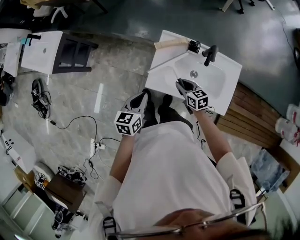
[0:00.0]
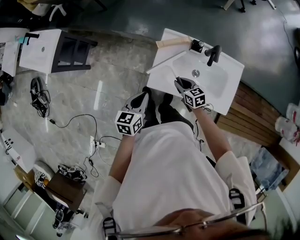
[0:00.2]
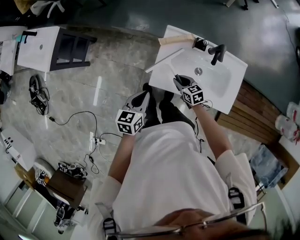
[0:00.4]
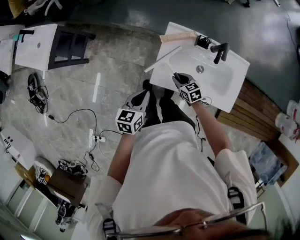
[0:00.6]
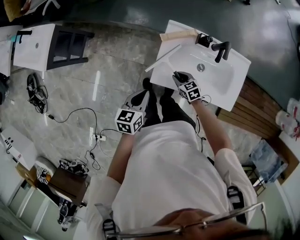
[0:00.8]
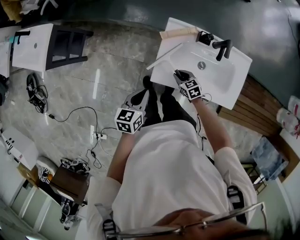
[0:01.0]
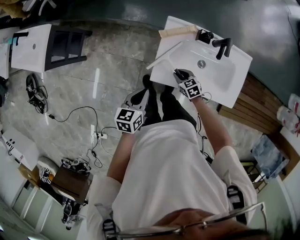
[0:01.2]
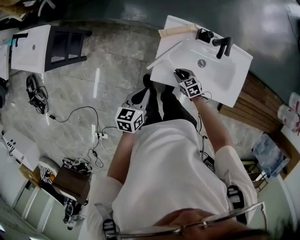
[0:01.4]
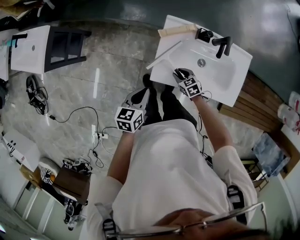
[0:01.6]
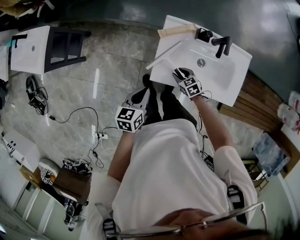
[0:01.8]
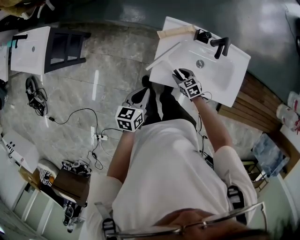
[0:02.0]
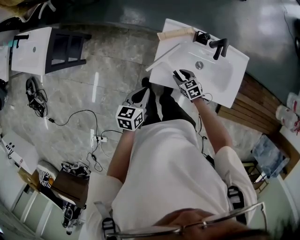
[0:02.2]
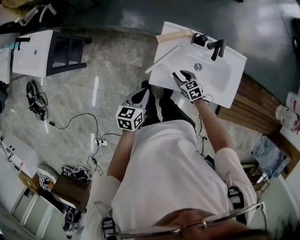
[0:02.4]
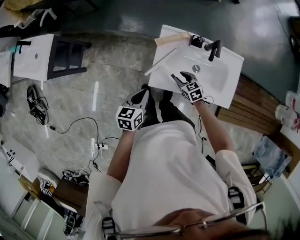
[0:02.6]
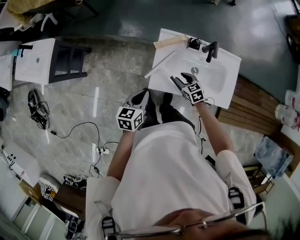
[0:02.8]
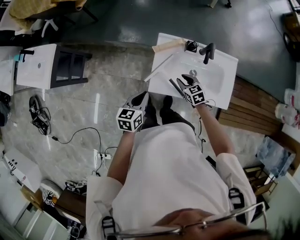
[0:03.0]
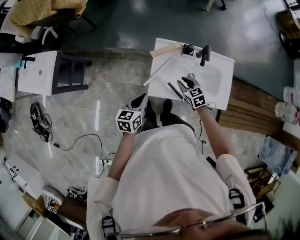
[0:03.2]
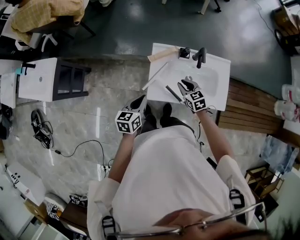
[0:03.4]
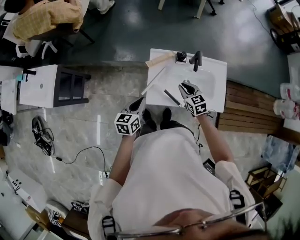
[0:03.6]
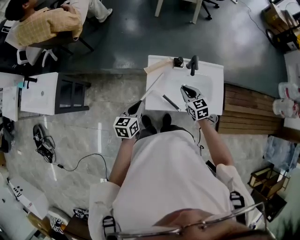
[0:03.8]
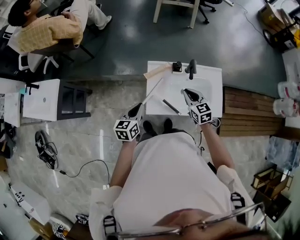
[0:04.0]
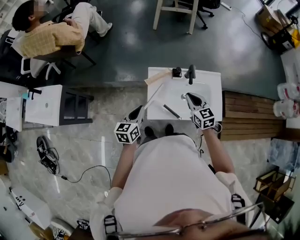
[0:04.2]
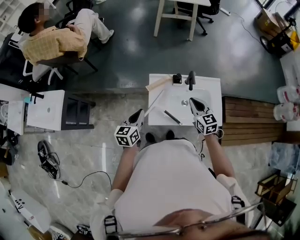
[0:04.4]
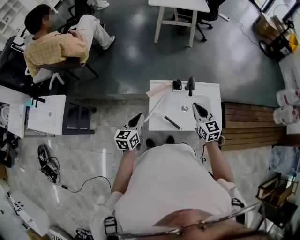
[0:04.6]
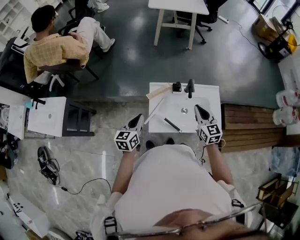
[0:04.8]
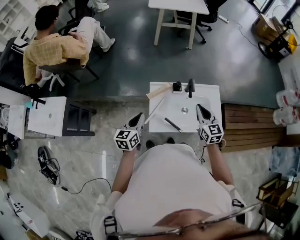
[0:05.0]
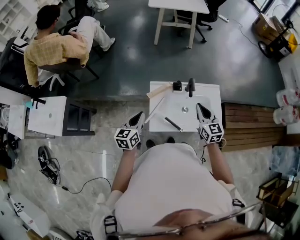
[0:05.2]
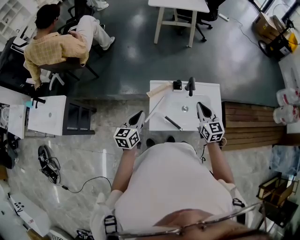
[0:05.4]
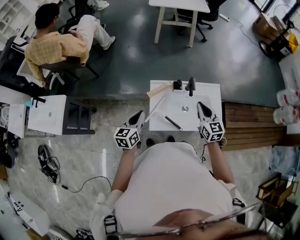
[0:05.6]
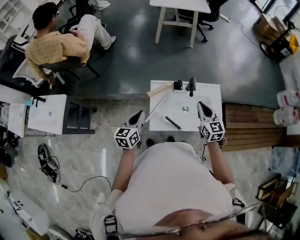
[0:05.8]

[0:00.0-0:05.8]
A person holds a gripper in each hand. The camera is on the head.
0:00.0 to 0:01.4: The right gripper is displaced downward by about 15 cm. The left gripper is displaced downward by approximately 5 cm.
0:01.4 to 0:02.8: The right gripper moves upward, about 10 cm.
0:02.8 to 0:04.4: The left gripper moves upward and forward, approximately 10 cm. The right gripper heads upward, covering approximately 25 cm, turns by approximately 30 degrees, and closes.
0:04.4 to 0:05.8: The right gripper moves some 5 cm.

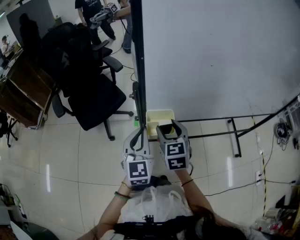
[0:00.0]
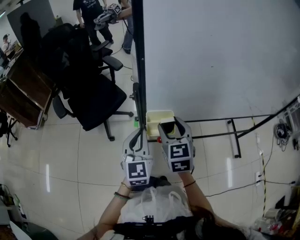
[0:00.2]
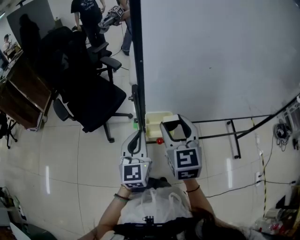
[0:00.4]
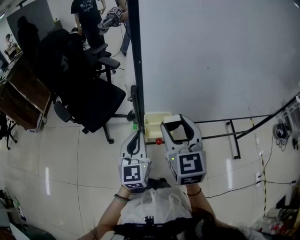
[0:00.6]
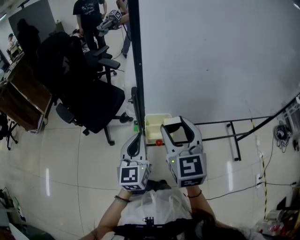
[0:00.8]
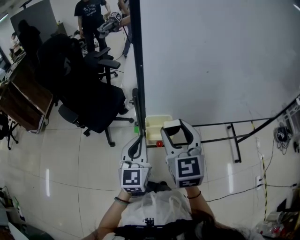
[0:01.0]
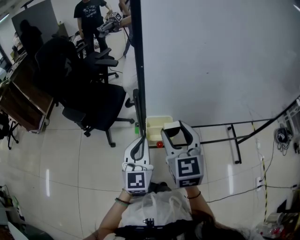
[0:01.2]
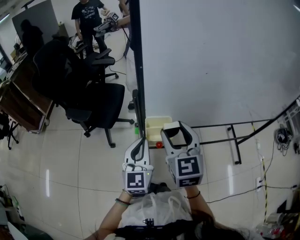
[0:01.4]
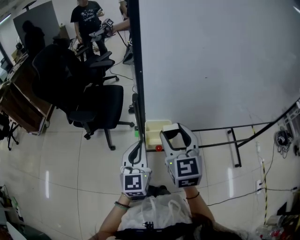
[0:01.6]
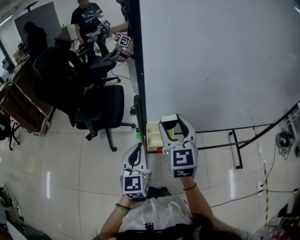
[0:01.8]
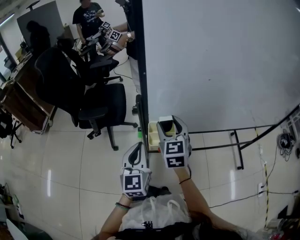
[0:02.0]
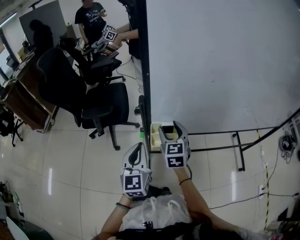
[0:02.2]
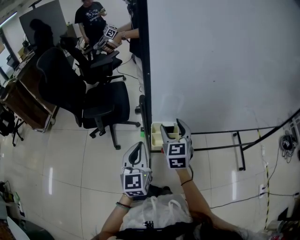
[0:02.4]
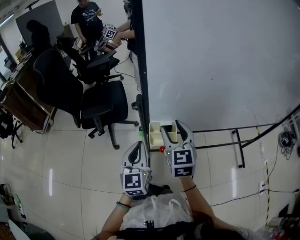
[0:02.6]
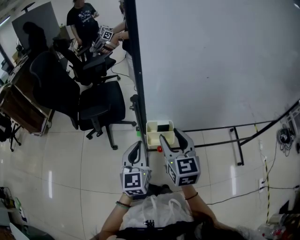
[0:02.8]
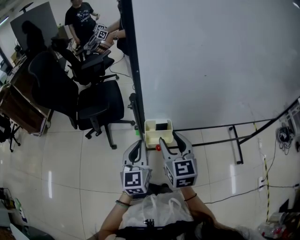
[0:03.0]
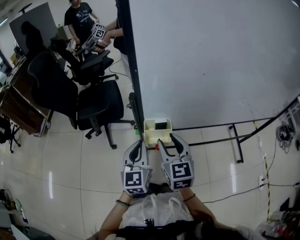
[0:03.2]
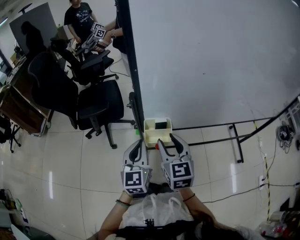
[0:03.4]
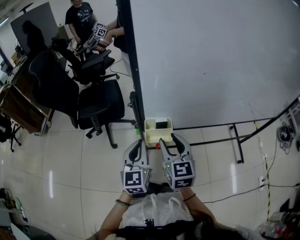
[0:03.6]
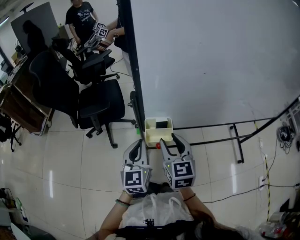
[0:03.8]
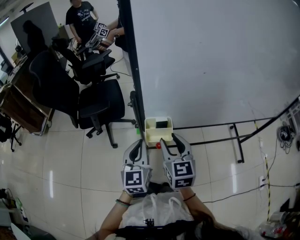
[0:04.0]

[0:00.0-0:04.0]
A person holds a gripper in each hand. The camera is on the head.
0:00.0 to 0:01.4: The right gripper heads upward, covering about 10 cm.
0:02.6 to 0:04.0: The right gripper travels backward by roughly 5 cm.

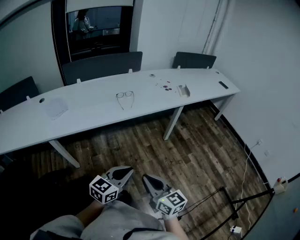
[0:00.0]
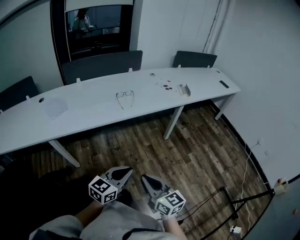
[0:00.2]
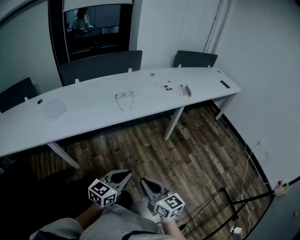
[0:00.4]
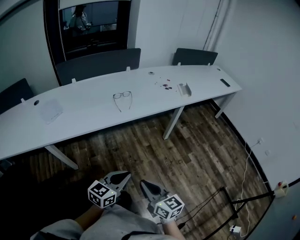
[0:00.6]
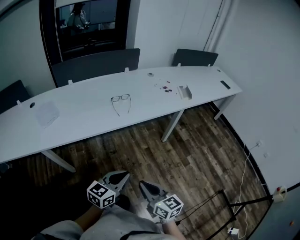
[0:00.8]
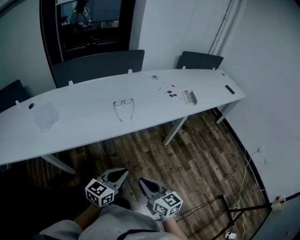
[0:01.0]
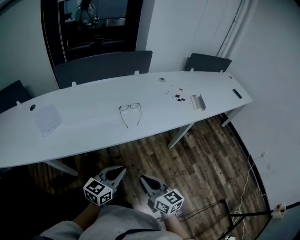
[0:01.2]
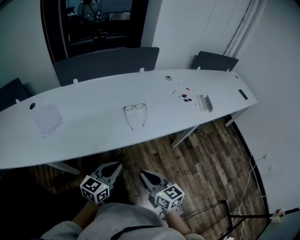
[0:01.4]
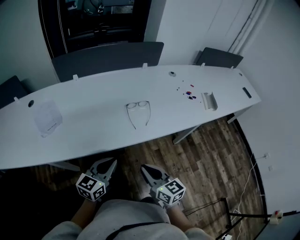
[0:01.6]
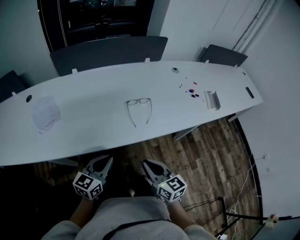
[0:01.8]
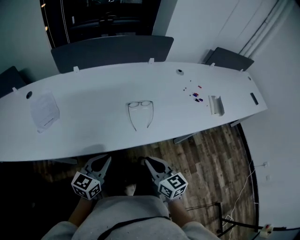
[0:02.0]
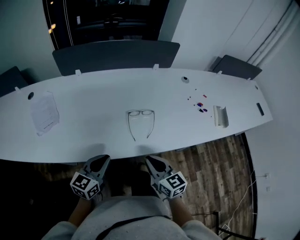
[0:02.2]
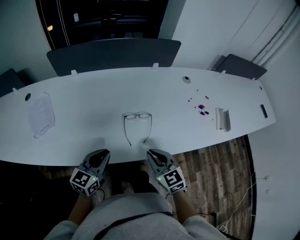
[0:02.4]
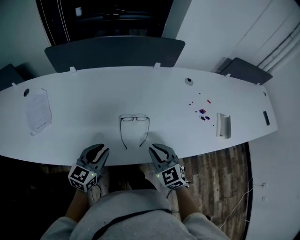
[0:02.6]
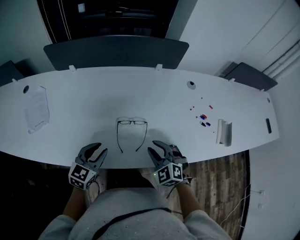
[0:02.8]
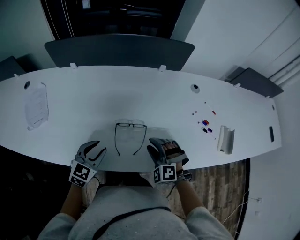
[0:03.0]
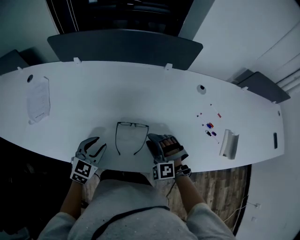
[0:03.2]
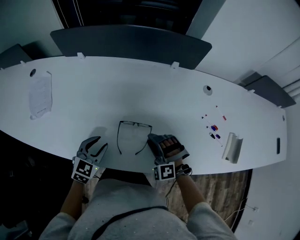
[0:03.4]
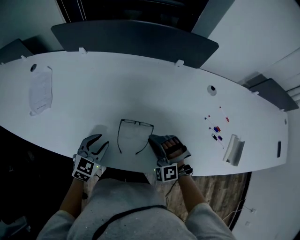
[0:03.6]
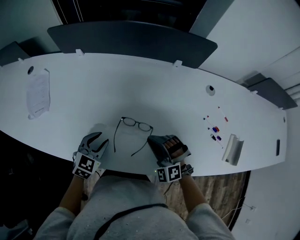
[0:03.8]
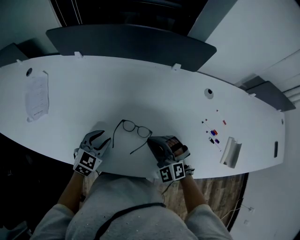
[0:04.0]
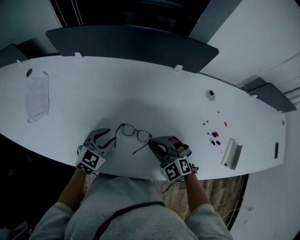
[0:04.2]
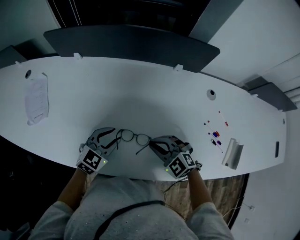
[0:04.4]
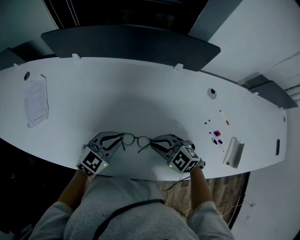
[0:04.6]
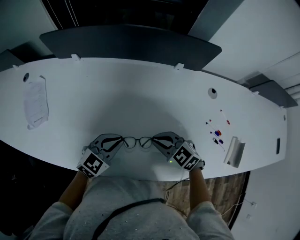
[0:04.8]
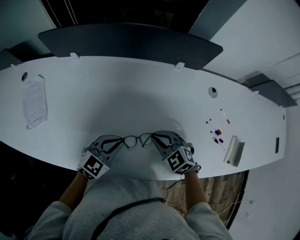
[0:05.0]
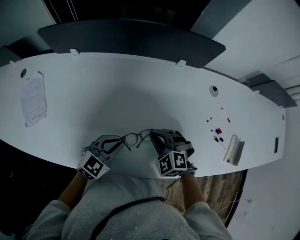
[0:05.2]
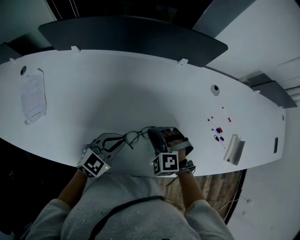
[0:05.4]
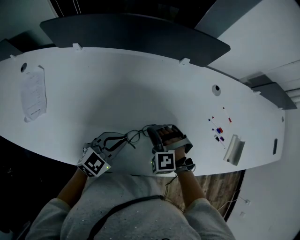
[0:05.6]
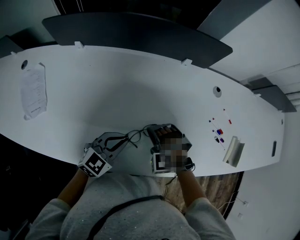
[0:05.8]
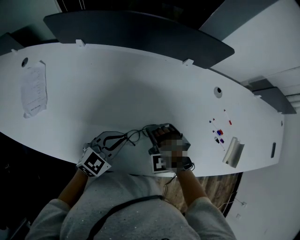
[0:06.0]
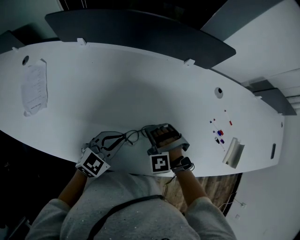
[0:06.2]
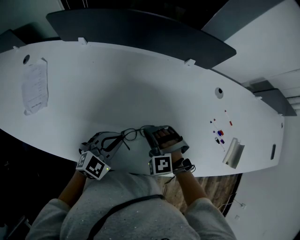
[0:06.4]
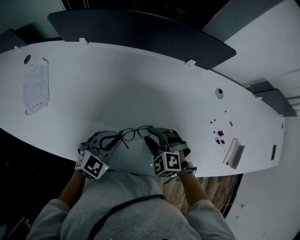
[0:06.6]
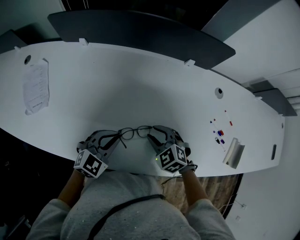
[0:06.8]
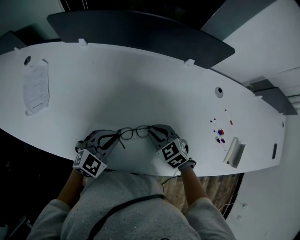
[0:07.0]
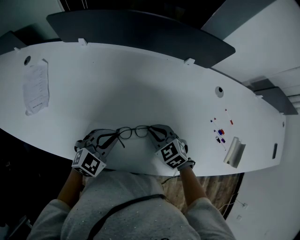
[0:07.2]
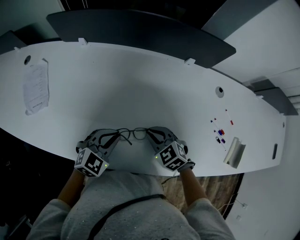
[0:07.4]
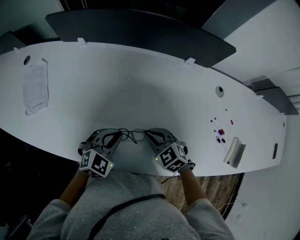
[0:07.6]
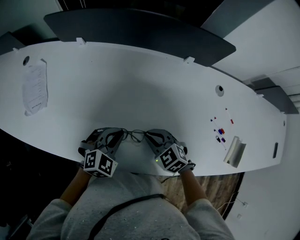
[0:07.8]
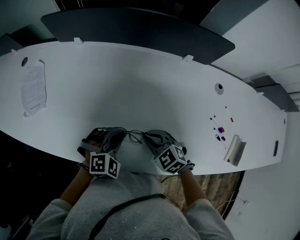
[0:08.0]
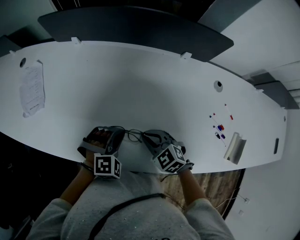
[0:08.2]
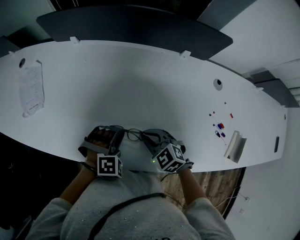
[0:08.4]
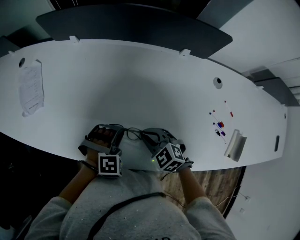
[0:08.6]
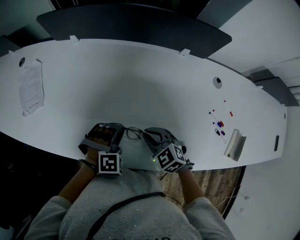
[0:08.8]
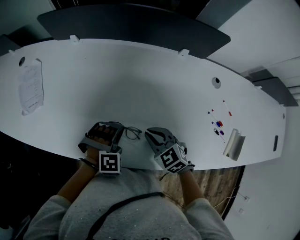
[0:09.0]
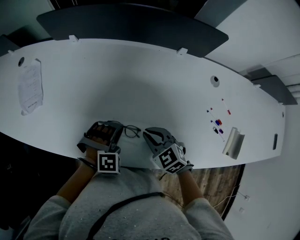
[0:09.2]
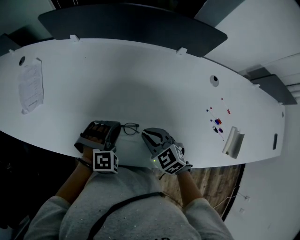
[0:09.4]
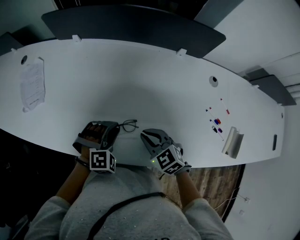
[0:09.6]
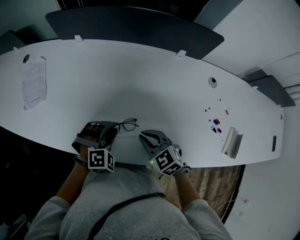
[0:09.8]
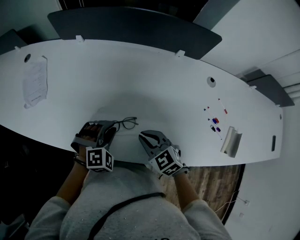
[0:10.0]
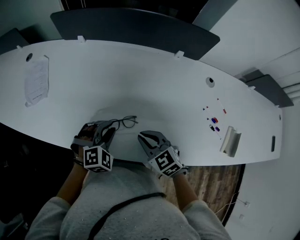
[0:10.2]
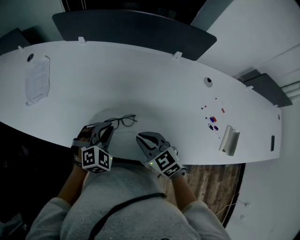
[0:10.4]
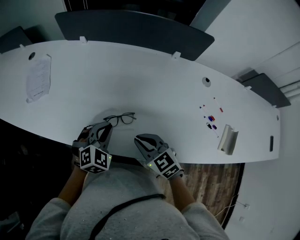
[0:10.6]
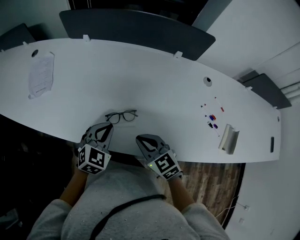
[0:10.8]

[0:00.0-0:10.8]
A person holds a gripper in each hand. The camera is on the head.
0:00.0 to 0:01.6: The right gripper heads forward, covering some 35 cm; the left gripper shifts roughly 40 cm forward and to the left.
0:01.6 to 0:03.0: The left gripper travels forward by some 25 cm, rotates about 30 degrees, and opens up. The right gripper goes approximately 35 cm forward and to the right, rotates around the line of its fingers by about 90 degrees, counterclockwise from behind, and opens up.
0:03.0 to 0:04.6: The left gripper goes approximately 10 cm forward and to the right, and closes. Meanwhile the right gripper goes some 5 cm forward, rotates some 50 degrees, and closes.
0:04.6 to 0:06.2: The right gripper changes place by roughly 10 cm, and turns by some 50 degrees.
0:06.2 to 0:07.8: The right gripper twists some 50 degrees clockwise, seen from behind, and opens, then closes once more, while the left gripper turns by approximately 20 degrees.
0:07.8 to 0:09.2: The left gripper rotates some 40 degrees.
0:09.2 to 0:10.8: The right gripper moves backward, some 10 cm; the left gripper moves upward, backward and to the left, approximately 10 cm, twists some 50 degrees counterclockwise, seen from behind, and opens, then closes again.

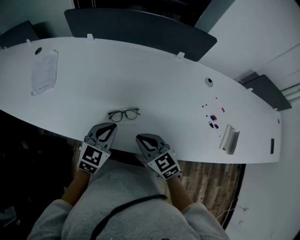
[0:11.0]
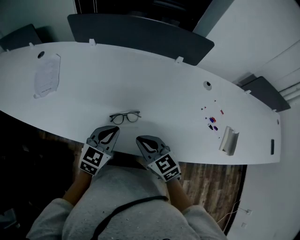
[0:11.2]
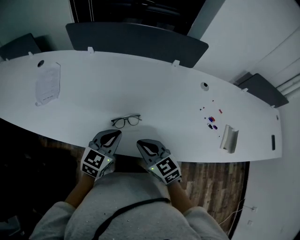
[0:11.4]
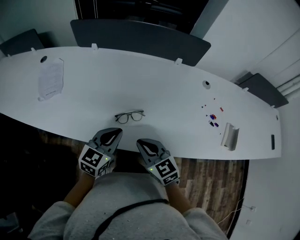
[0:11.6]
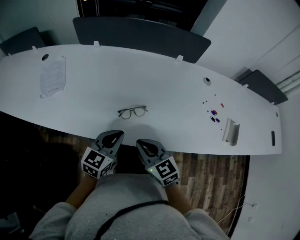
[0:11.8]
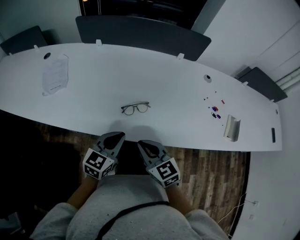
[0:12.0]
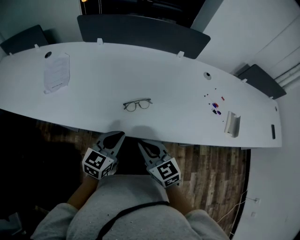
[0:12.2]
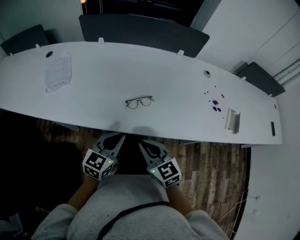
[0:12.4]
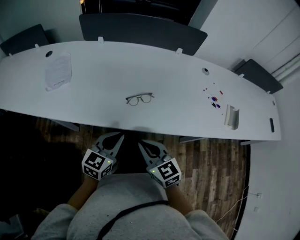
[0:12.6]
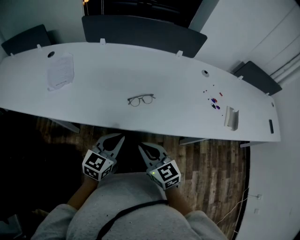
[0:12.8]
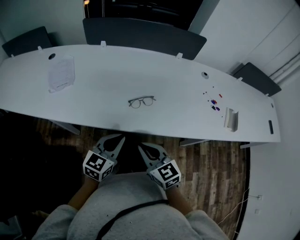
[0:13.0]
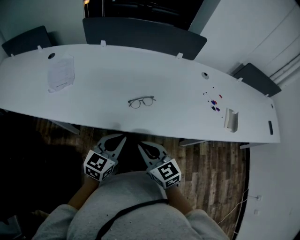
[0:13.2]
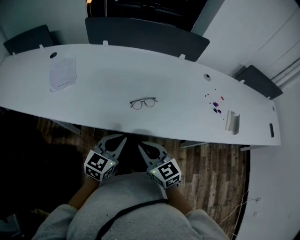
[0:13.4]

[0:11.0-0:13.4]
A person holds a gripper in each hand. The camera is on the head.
0:11.0 to 0:12.2: Both grippers move backward and to the left, roughly 15 cm.
0:12.2 to 0:13.4: The left gripper moves roughly 5 cm; the right gripper ends up about 5 cm from where it was.
